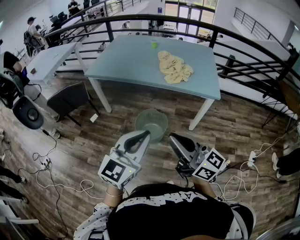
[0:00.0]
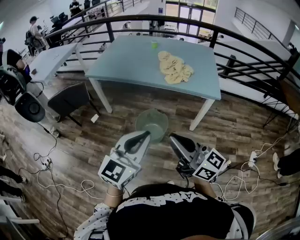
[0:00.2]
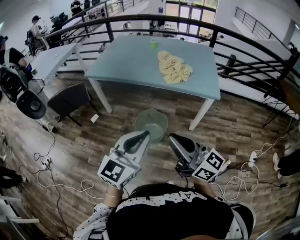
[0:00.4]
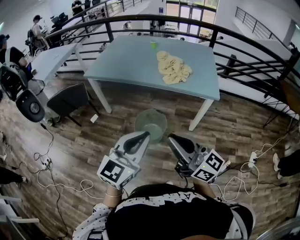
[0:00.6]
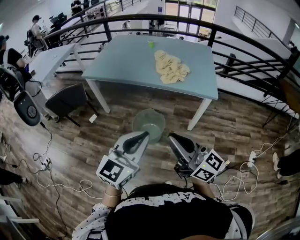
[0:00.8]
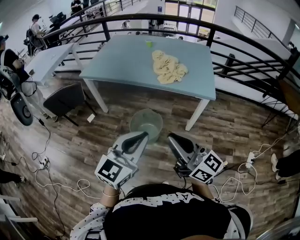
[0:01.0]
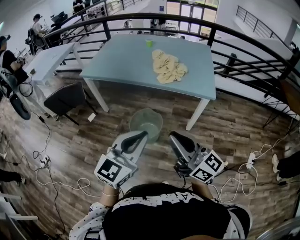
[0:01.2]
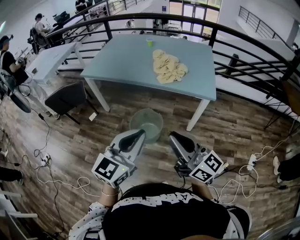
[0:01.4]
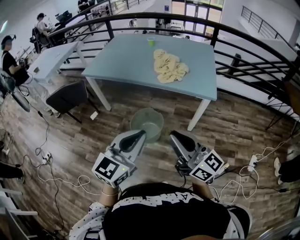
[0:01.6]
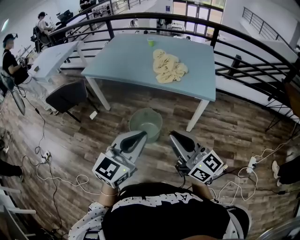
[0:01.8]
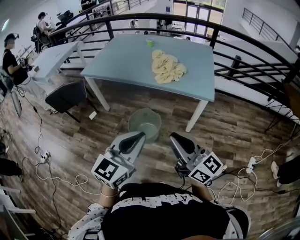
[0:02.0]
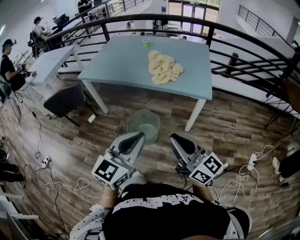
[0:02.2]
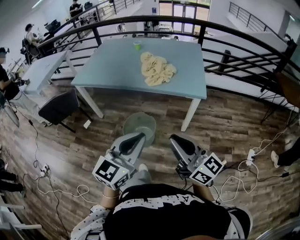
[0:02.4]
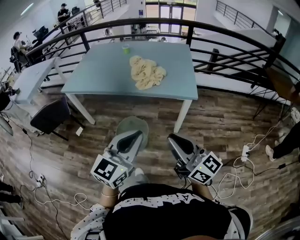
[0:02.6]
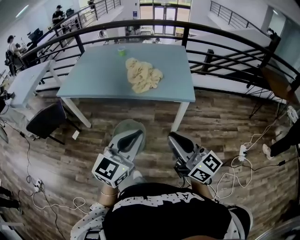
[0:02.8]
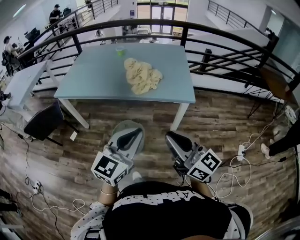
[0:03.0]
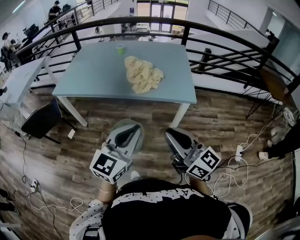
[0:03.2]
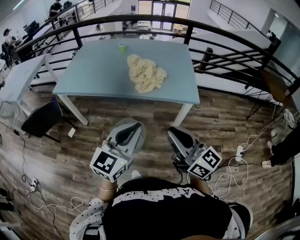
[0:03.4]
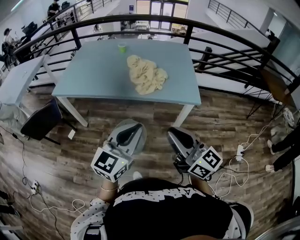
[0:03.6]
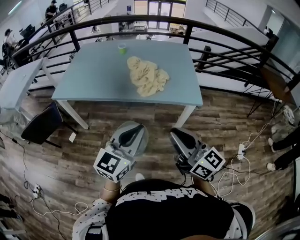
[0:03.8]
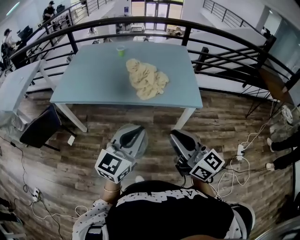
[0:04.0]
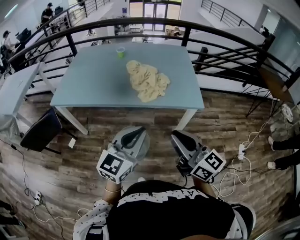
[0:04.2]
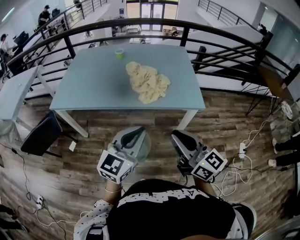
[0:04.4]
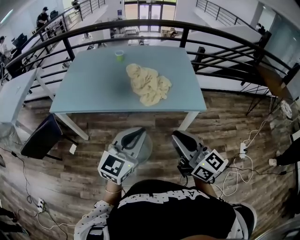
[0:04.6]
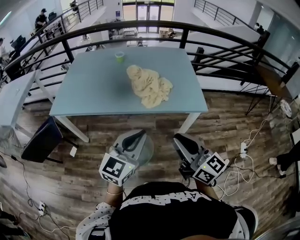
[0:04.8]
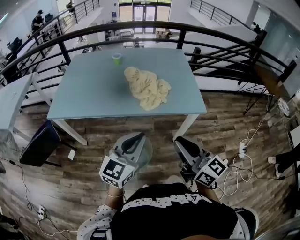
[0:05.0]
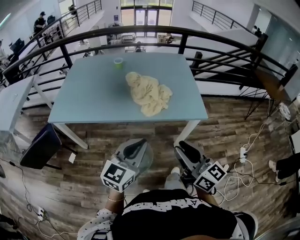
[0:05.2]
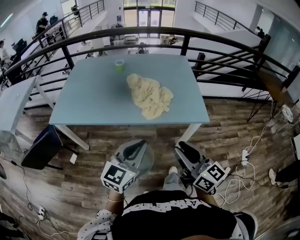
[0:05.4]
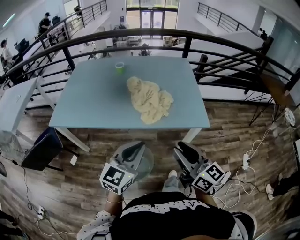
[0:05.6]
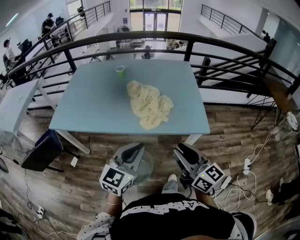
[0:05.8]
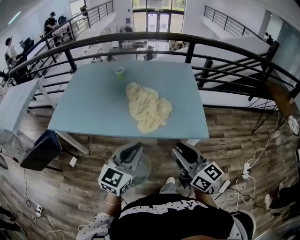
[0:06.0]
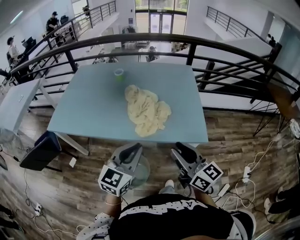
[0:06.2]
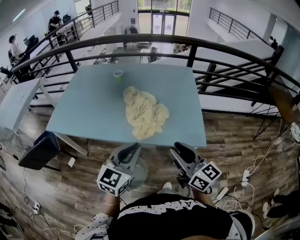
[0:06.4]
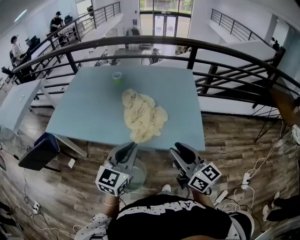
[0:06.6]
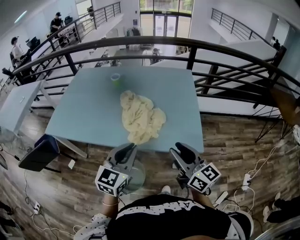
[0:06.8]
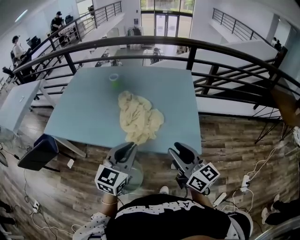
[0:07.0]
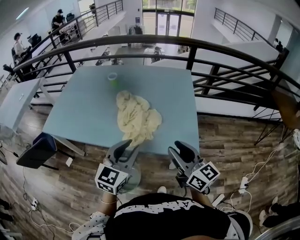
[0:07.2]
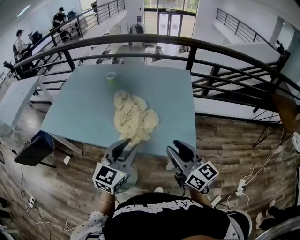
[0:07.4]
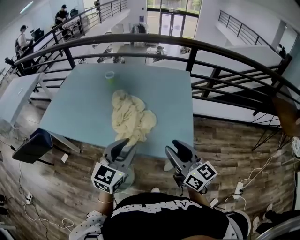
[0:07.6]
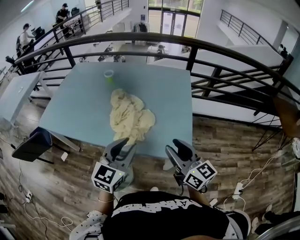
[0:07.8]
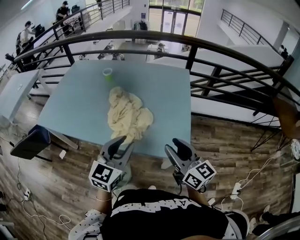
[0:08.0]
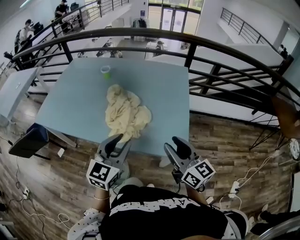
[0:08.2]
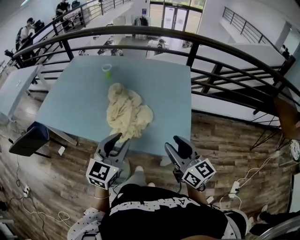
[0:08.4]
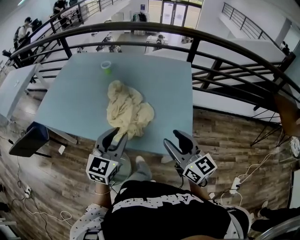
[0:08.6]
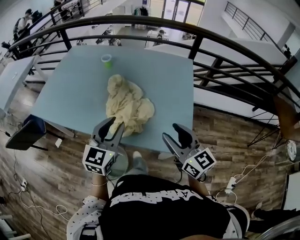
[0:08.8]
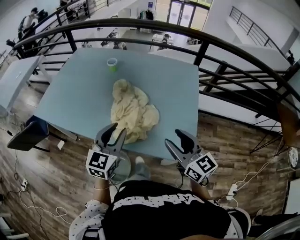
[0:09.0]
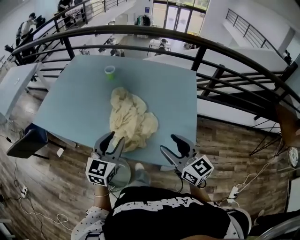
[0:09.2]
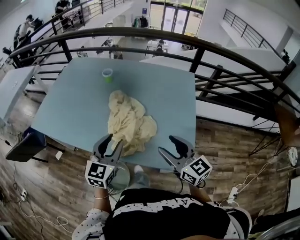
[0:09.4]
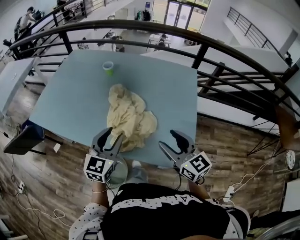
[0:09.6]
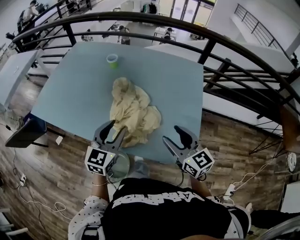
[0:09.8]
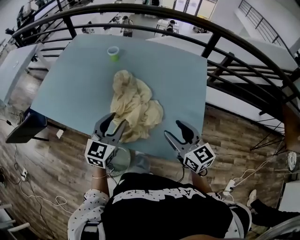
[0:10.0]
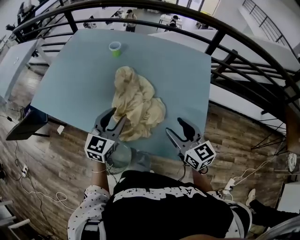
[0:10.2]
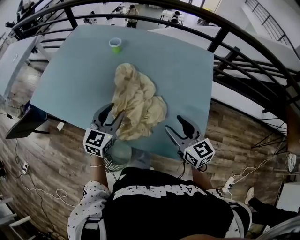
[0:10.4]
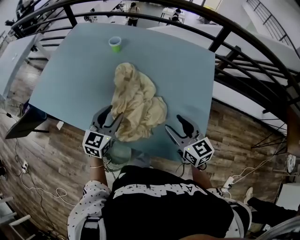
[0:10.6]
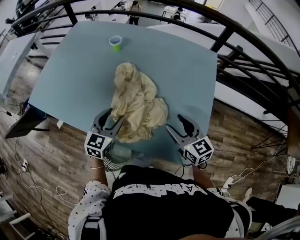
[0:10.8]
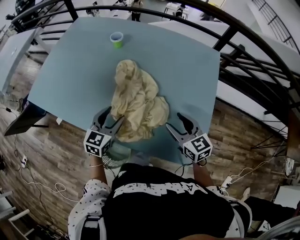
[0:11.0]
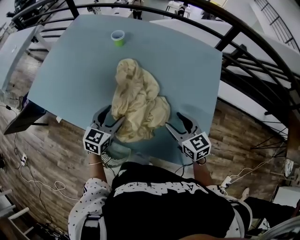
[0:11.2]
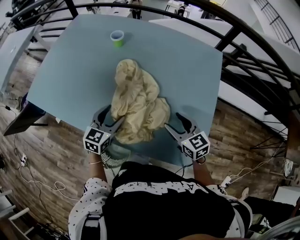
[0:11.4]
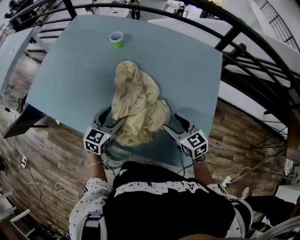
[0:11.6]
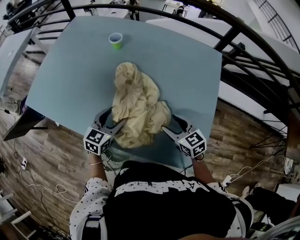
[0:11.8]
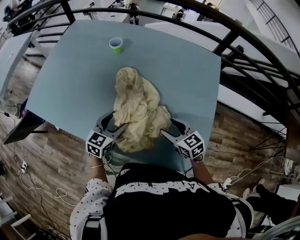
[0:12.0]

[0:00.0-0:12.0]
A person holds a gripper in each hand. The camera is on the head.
0:00.0 to 0:01.6: The two grippers go some 10 cm to the right.
0:01.6 to 0:03.0: Both grippers travel together forward, some 5 cm.
0:03.0 to 0:04.4: Both grippers move forward and to the left, roughly 15 cm.
0:04.4 to 0:06.0: The two grippers go about 15 cm forward.
0:06.0 to 0:07.6: The grippers both shift to the right and forward by about 15 cm.
0:07.6 to 0:09.0: Both grippers travel together forward, roughly 10 cm.
0:09.0 to 0:10.4: Both grippers travel together forward and downward, approximately 10 cm.
0:10.4 to 0:12.0: The right gripper goes roughly 15 cm downward and forward, and changes its angle by some 20 degrees, while the left gripper goes some 10 cm downward, and opens.

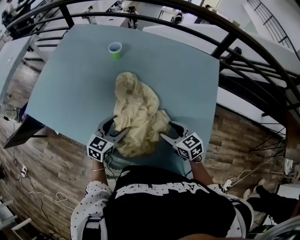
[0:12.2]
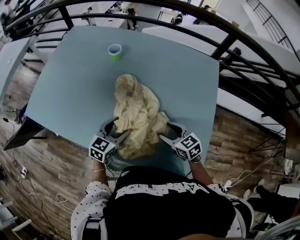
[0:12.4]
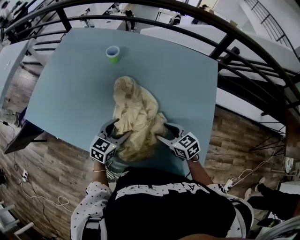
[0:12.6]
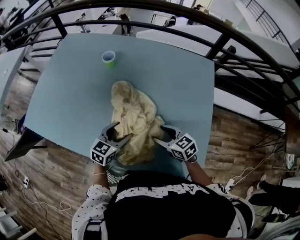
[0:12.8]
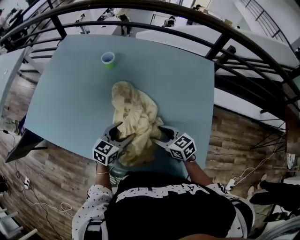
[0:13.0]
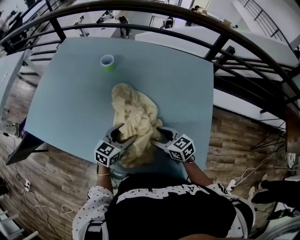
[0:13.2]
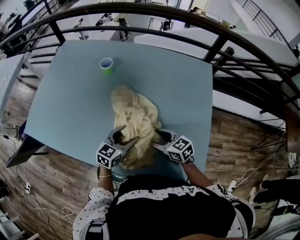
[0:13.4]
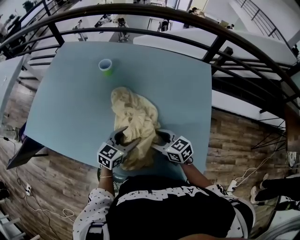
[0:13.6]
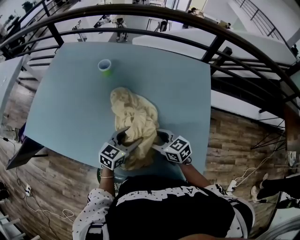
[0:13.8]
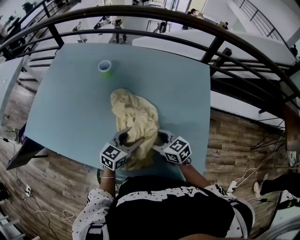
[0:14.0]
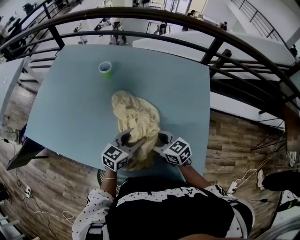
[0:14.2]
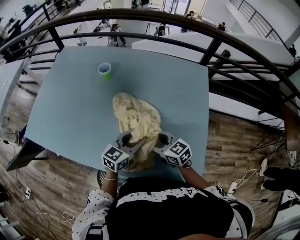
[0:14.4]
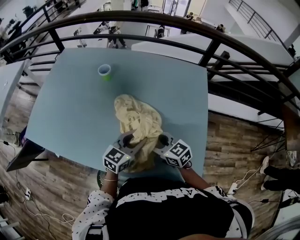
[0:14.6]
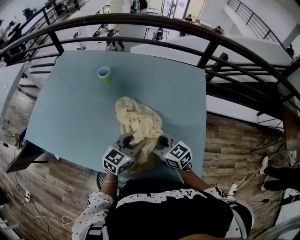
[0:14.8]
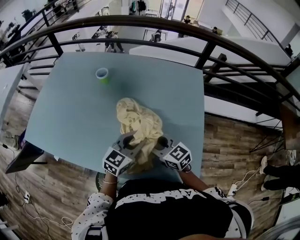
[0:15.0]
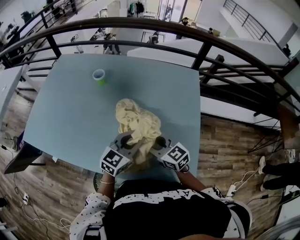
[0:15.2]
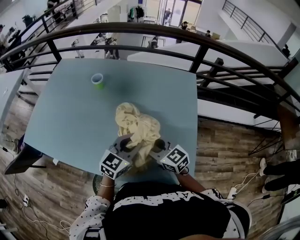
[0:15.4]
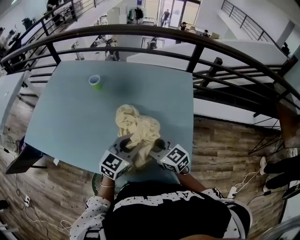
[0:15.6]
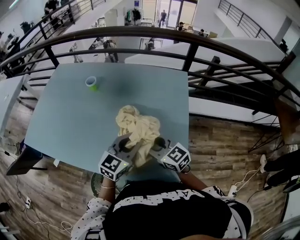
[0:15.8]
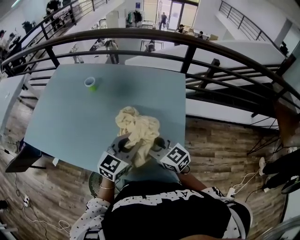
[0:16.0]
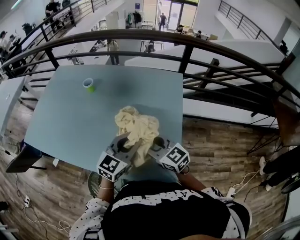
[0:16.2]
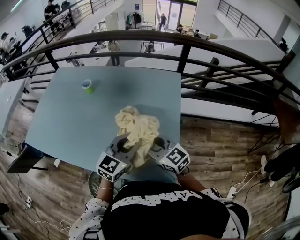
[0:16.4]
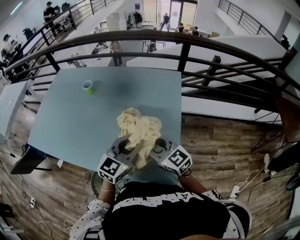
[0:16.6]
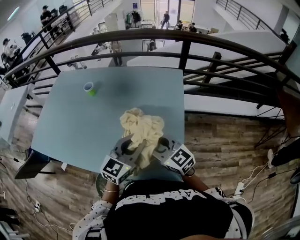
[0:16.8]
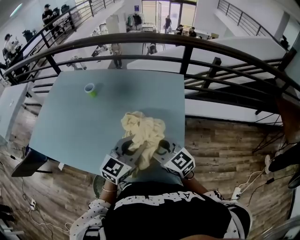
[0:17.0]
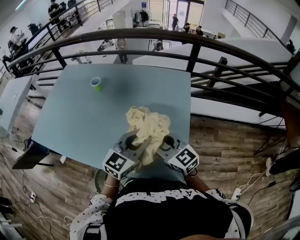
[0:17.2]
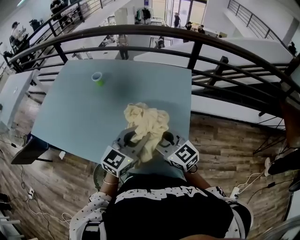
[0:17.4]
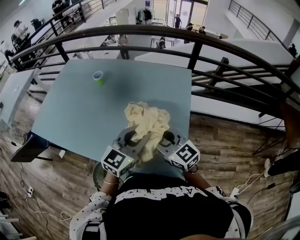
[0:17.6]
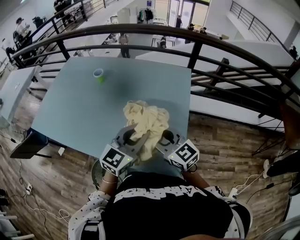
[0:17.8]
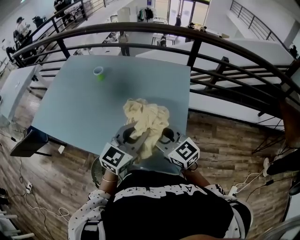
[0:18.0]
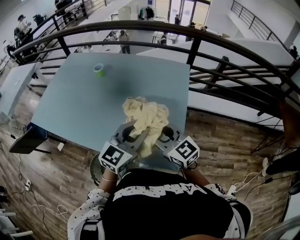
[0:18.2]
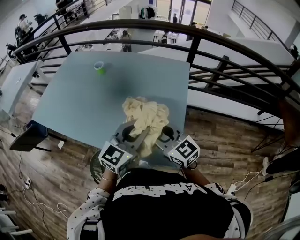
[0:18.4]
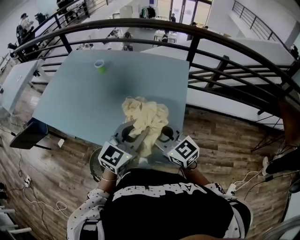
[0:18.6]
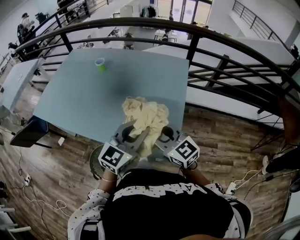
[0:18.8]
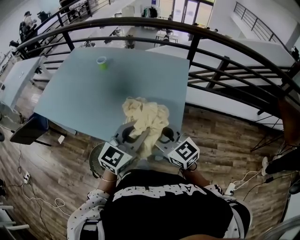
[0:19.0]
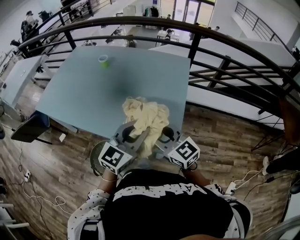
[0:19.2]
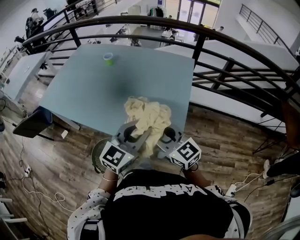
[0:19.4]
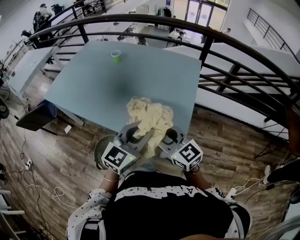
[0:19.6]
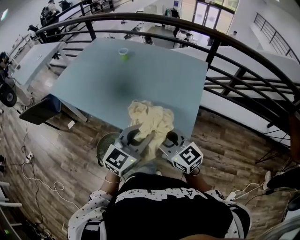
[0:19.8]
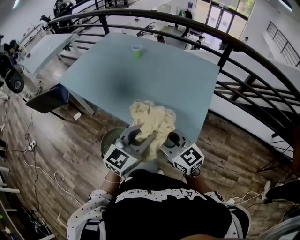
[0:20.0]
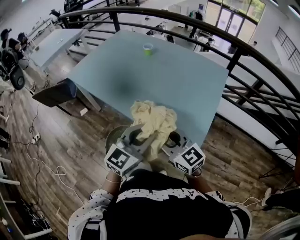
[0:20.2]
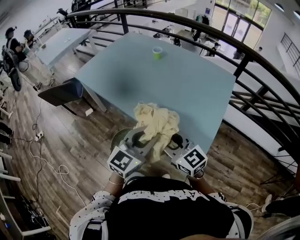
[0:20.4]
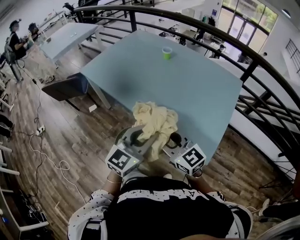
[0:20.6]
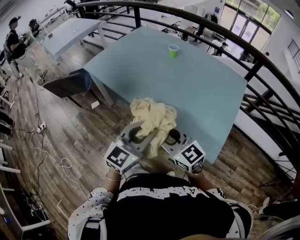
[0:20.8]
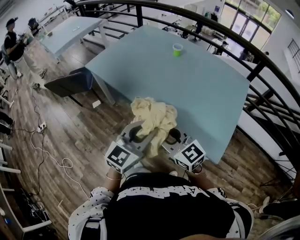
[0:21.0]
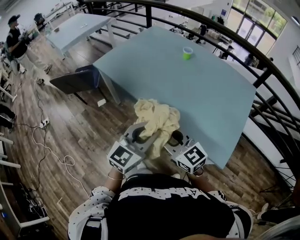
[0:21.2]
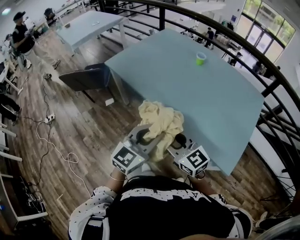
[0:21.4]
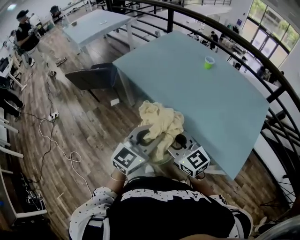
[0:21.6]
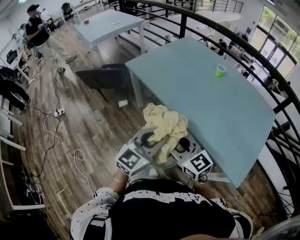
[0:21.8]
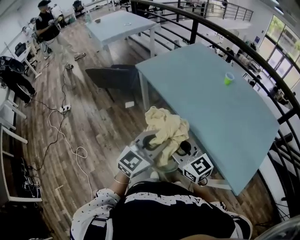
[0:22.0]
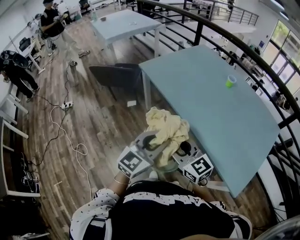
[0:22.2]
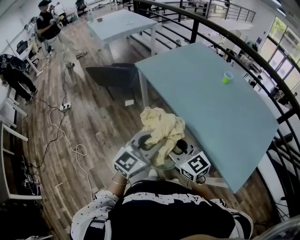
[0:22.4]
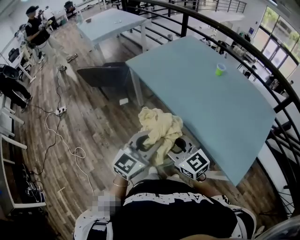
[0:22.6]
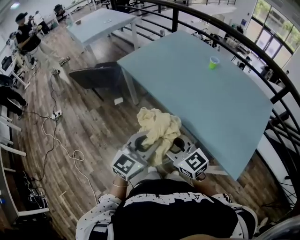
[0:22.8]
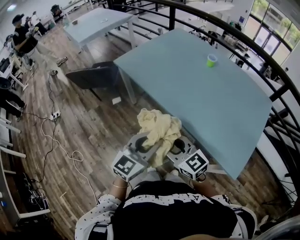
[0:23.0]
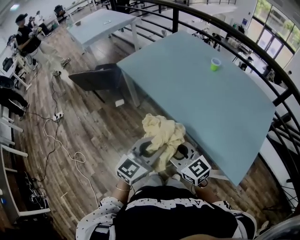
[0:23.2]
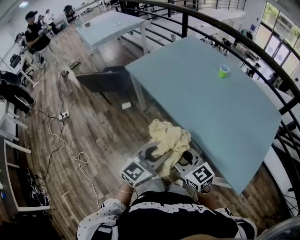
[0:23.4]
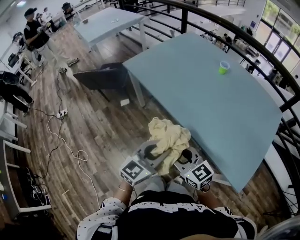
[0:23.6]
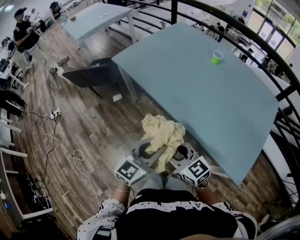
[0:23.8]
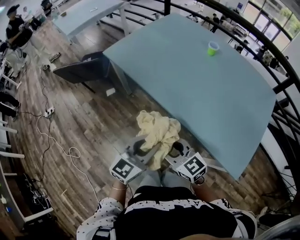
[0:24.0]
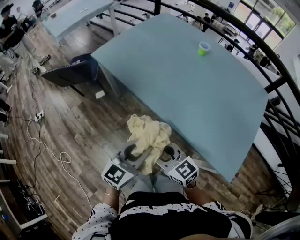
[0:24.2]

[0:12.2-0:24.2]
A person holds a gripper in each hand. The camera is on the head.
0:12.2 to 0:13.8: The right gripper is displaced to the left by about 5 cm. Meanwhile the left gripper heads to the right, covering some 10 cm.
0:13.8 to 0:15.2: The left gripper goes about 10 cm upward and to the right, and closes its fingers, while the right gripper moves upward, about 5 cm.
0:15.2 to 0:16.6: The two grippers go approximately 15 cm to the right, upward and backward.
0:16.6 to 0:18.2: The grippers make only small movements.
0:18.2 to 0:19.8: The grippers both shift backward by some 15 cm.
0:19.8 to 0:21.2: The grippers both shift to the left by approximately 25 cm.
0:21.2 to 0:22.6: The grippers both shift to the left by about 15 cm.
0:22.6 to 0:24.2: The left gripper is displaced downward and to the right by roughly 10 cm; the right gripper heads downward, covering about 10 cm.
